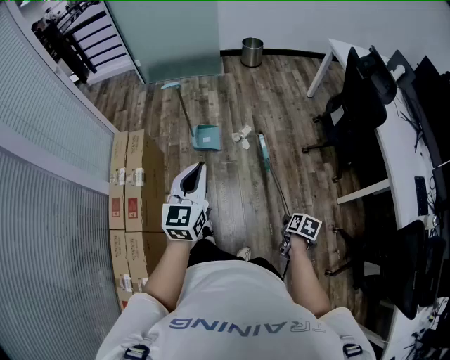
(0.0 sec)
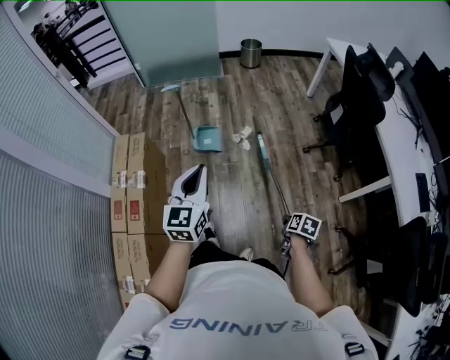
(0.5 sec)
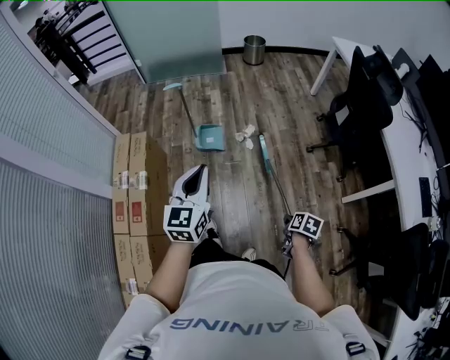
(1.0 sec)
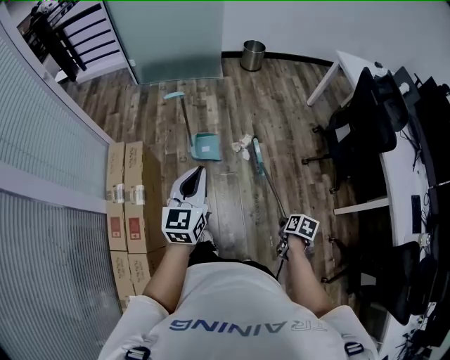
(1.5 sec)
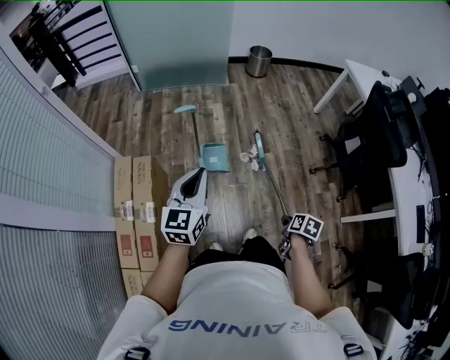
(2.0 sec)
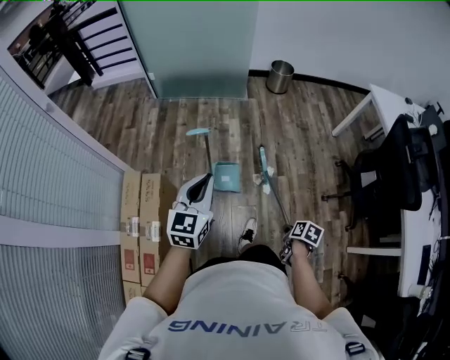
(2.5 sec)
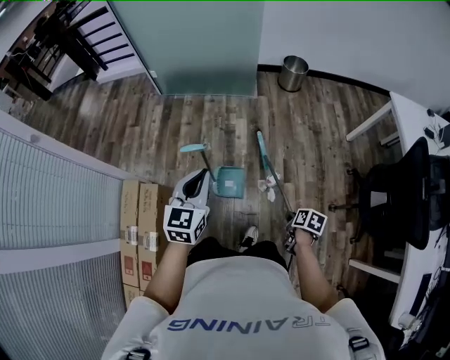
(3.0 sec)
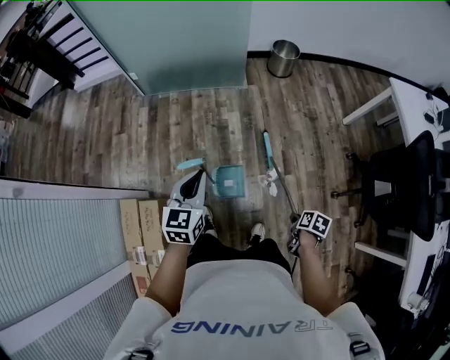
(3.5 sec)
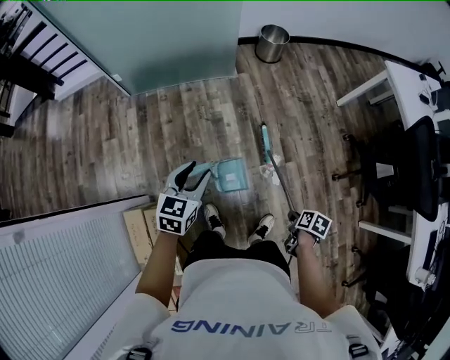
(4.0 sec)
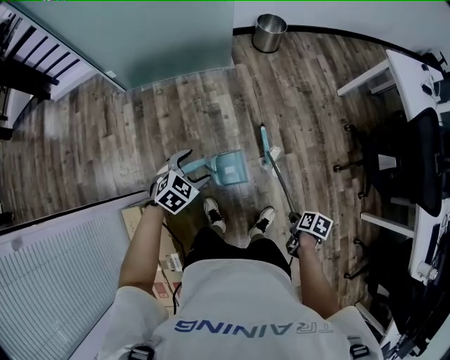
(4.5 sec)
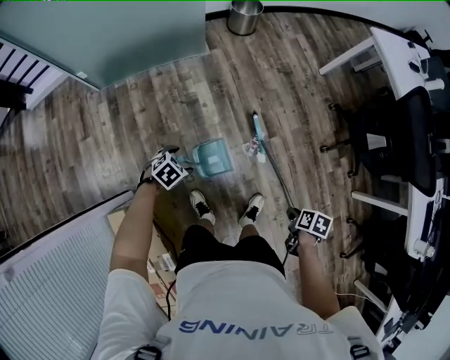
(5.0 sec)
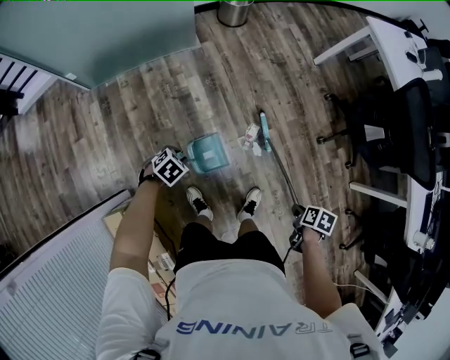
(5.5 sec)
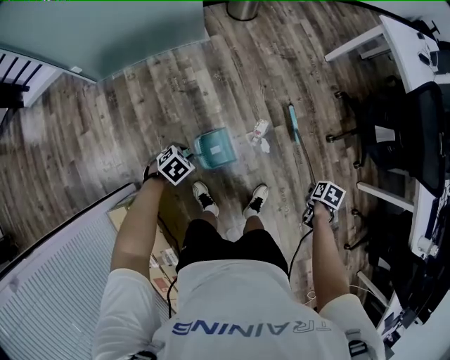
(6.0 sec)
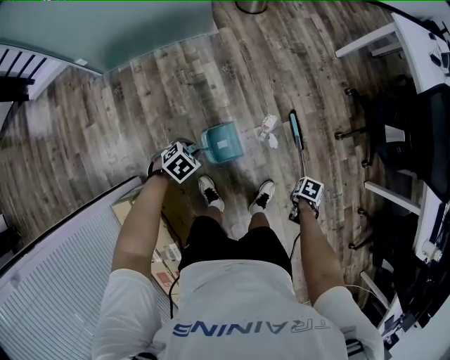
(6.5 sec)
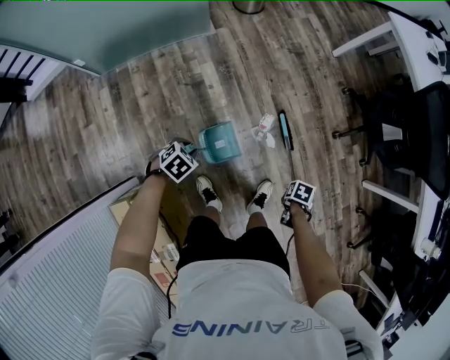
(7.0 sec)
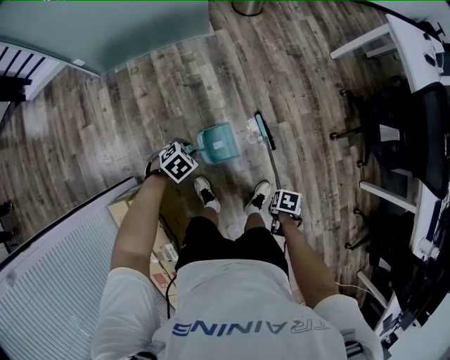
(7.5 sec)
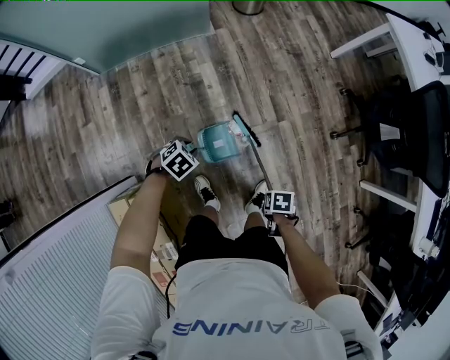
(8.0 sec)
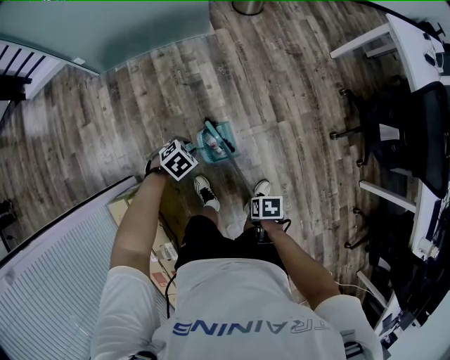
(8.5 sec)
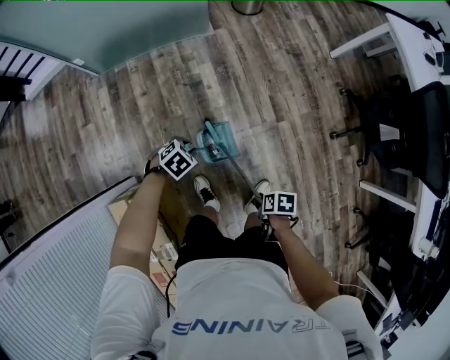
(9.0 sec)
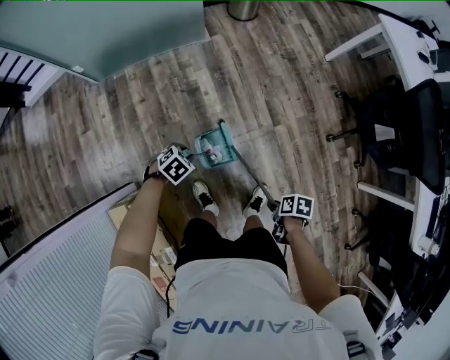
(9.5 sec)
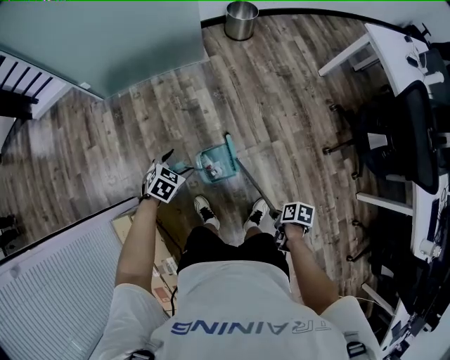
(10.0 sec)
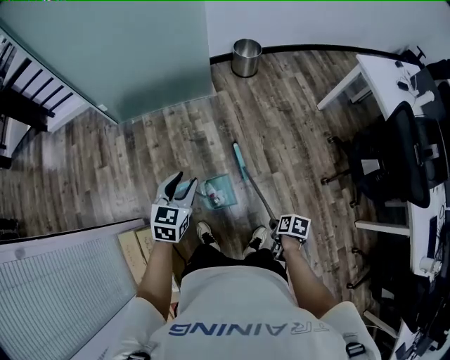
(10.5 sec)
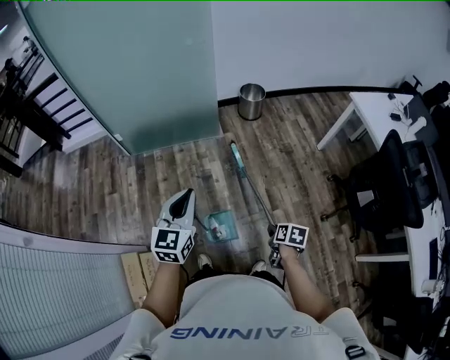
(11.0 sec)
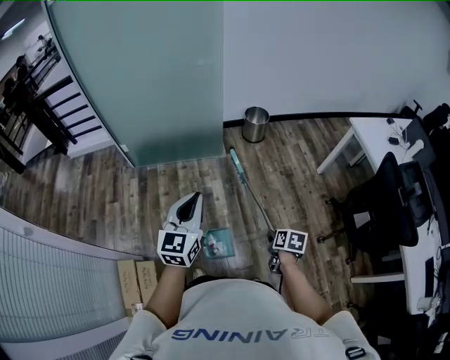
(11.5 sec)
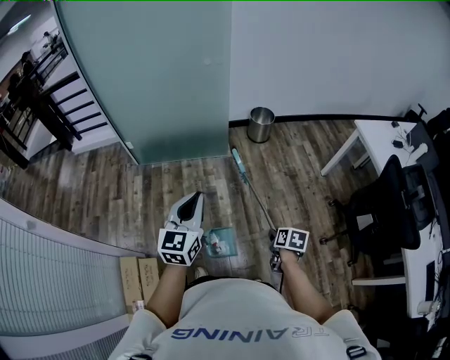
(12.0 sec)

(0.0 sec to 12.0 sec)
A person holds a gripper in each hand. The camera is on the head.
0.0 sec - 2.0 sec: The left gripper ends up approximately 25 cm from where it was.
2.0 sec - 4.0 sec: The left gripper moves about 40 cm, turns by about 30 degrees, and opens up.
4.0 sec - 6.0 sec: The left gripper moves downward, roughly 25 cm, points its fingers about 40 degrees further downward, and opens, then closes once more.
8.0 sec - 10.0 sec: The left gripper goes about 5 cm upward, and opens.
10.0 sec - 12.0 sec: The left gripper is displaced upward by some 35 cm, tips its fingers upward by some 50 degrees, and closes.

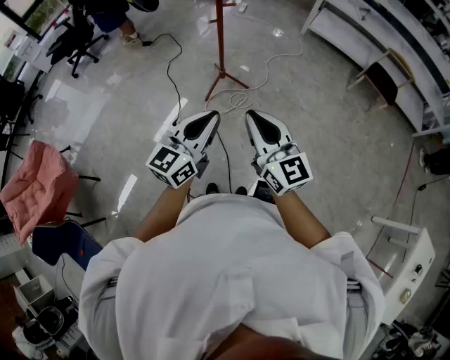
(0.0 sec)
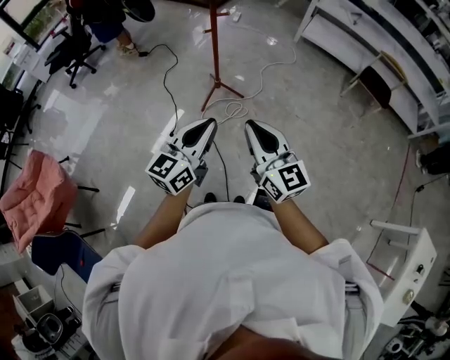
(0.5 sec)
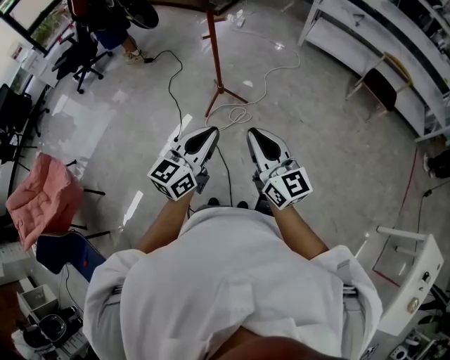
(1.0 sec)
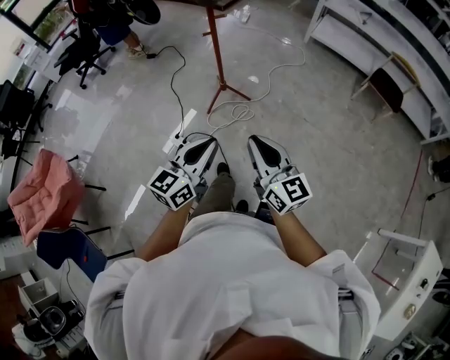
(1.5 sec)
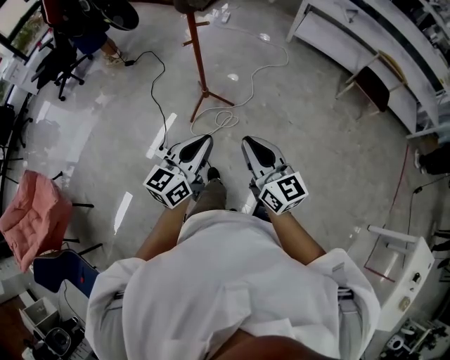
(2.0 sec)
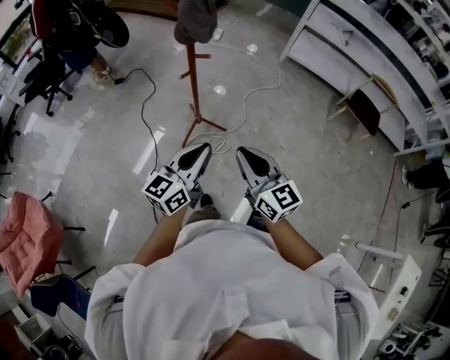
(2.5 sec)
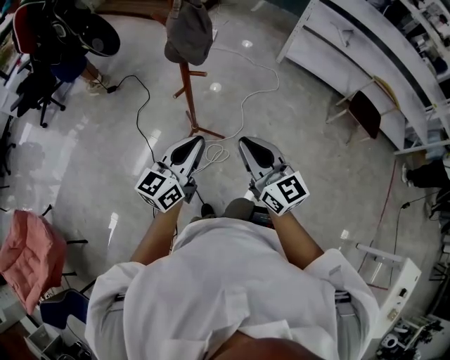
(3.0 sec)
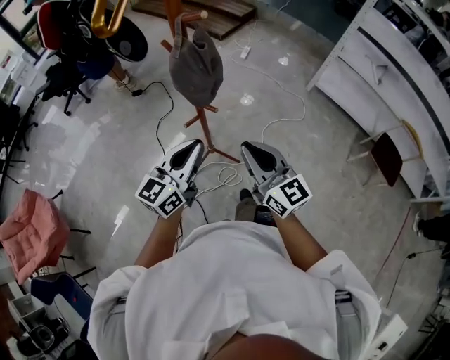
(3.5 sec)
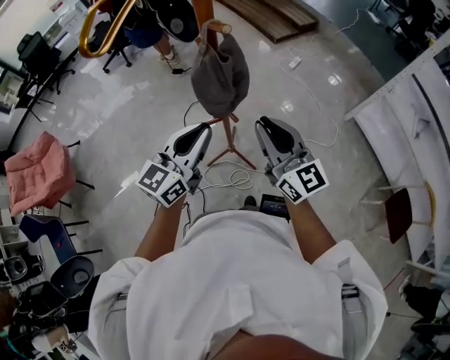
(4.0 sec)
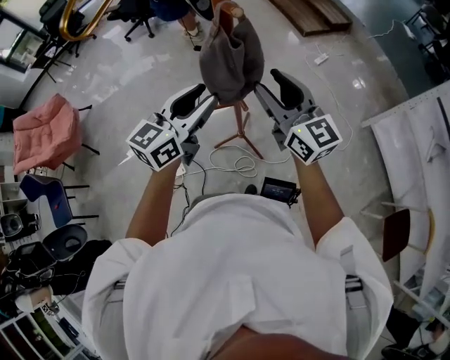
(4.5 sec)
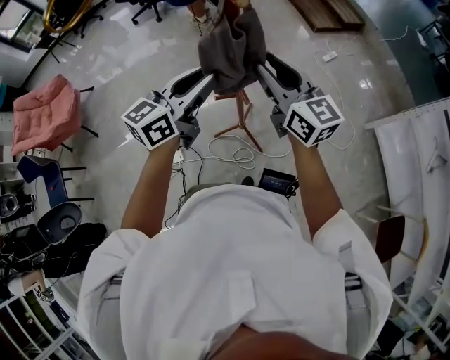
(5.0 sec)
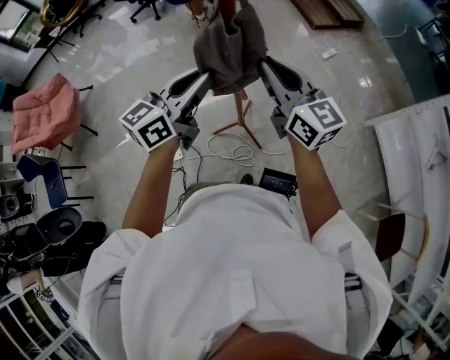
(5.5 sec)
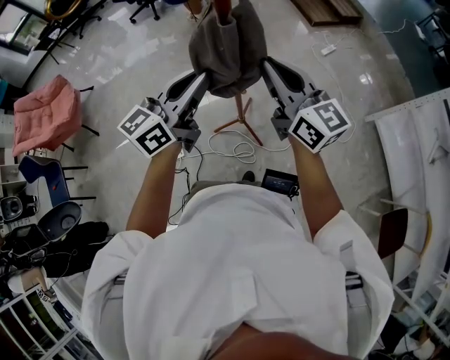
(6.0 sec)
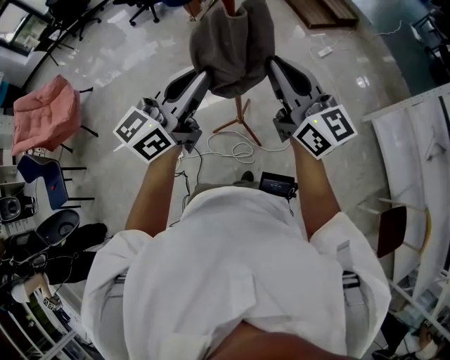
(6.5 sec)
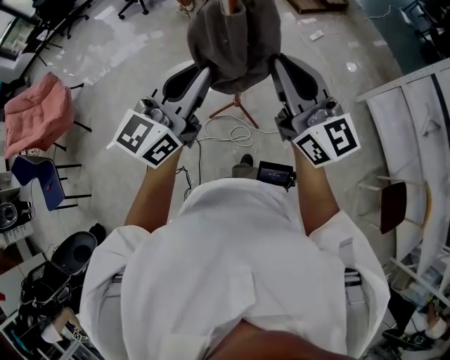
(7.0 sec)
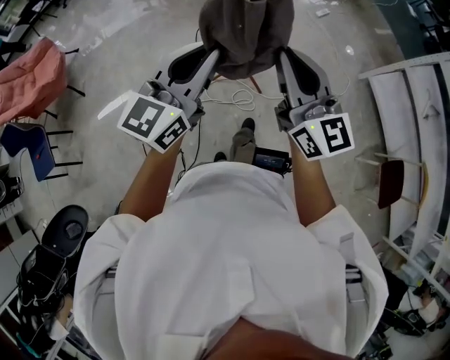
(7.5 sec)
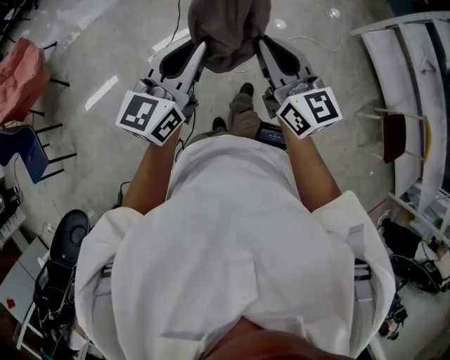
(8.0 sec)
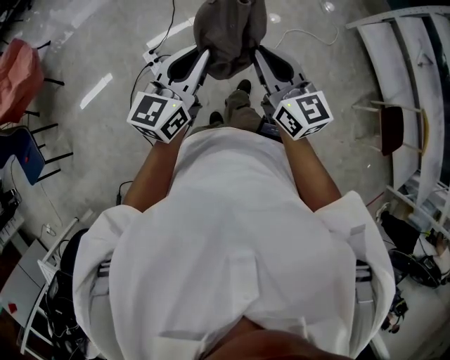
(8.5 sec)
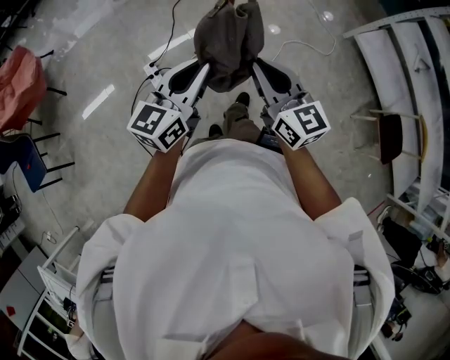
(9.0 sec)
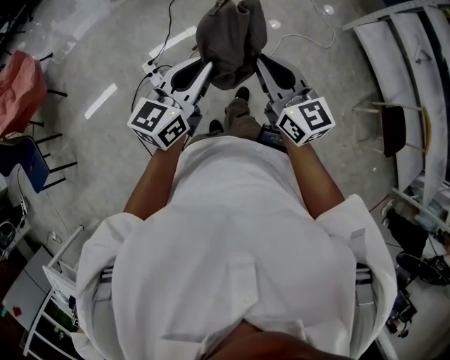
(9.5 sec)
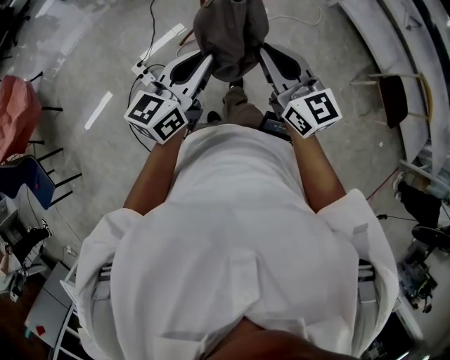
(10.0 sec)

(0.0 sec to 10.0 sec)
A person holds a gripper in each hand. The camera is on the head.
0.0 sec - 2.0 sec: The left gripper shifts approximately 10 cm forward and downward. Meanwhile the right gripper moves forward, to the right and downward, some 10 cm.
2.0 sec - 4.0 sec: Both grippers are carried approximately 50 cm. The right gripper swivels roughly 30 degrees. Meanwhile the left gripper rotates about 30 degrees.
4.0 sec - 6.0 sec: The left gripper opens and closes again. Meanwhile the right gripper moves forward, approximately 5 cm, and opens, then closes again.
6.0 sec - 8.0 sec: Both grippers move backward, some 30 cm.
8.0 sec - 10.0 sec: The right gripper shifts some 15 cm to the right and backward, while the left gripper shifts roughly 15 cm to the right and downward.

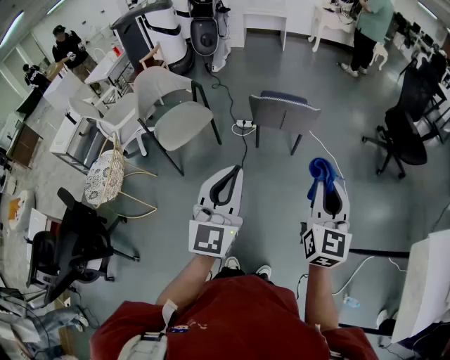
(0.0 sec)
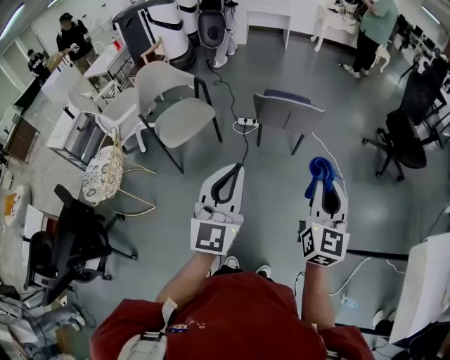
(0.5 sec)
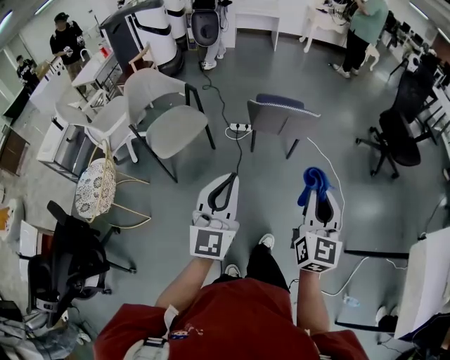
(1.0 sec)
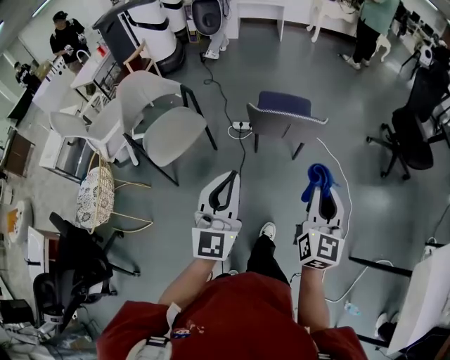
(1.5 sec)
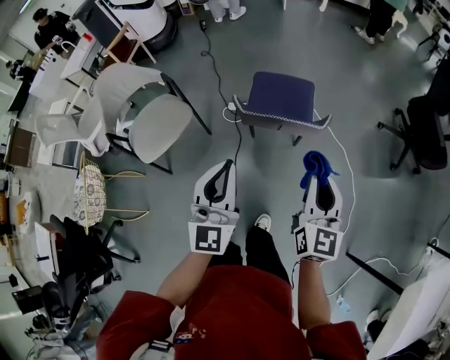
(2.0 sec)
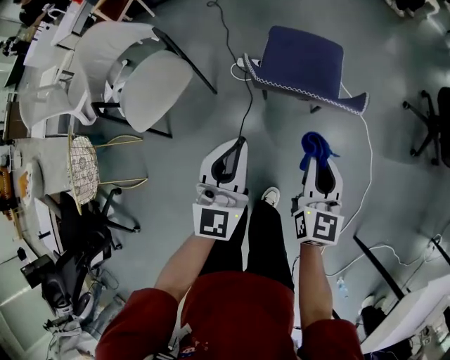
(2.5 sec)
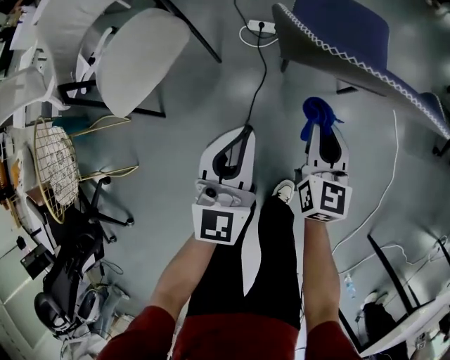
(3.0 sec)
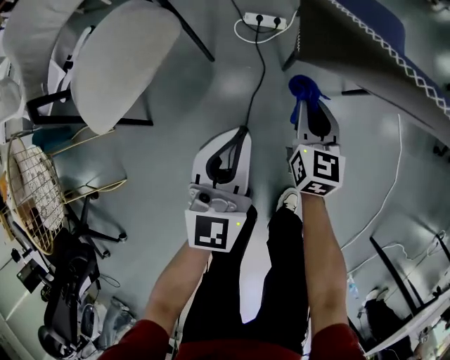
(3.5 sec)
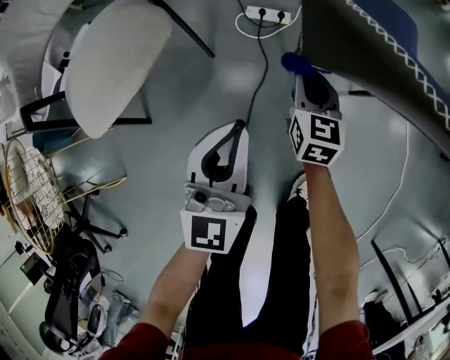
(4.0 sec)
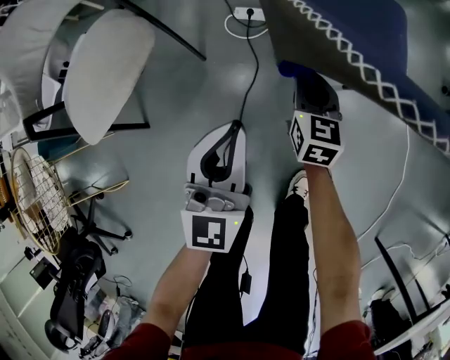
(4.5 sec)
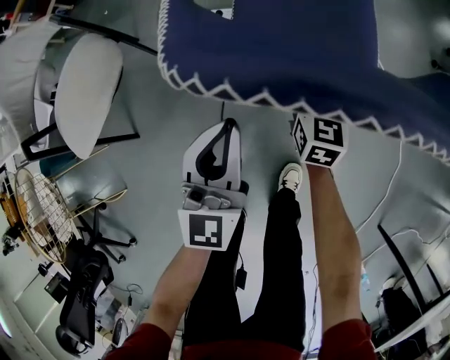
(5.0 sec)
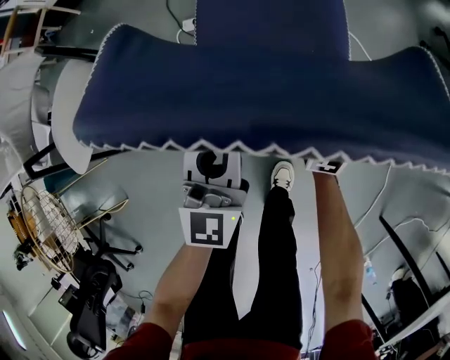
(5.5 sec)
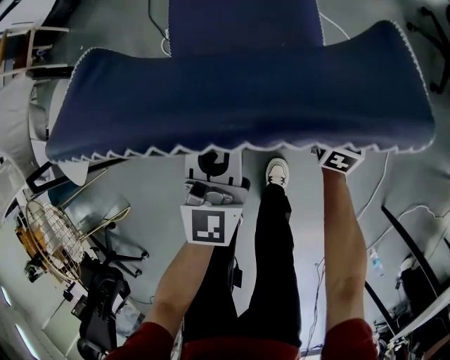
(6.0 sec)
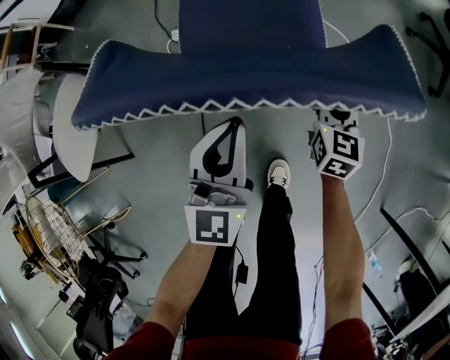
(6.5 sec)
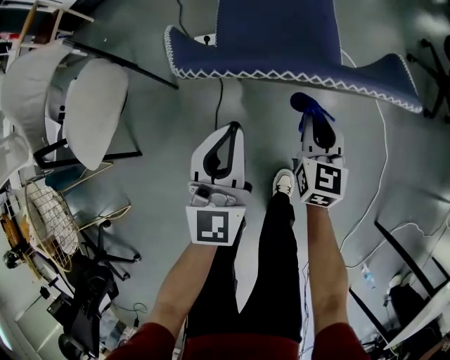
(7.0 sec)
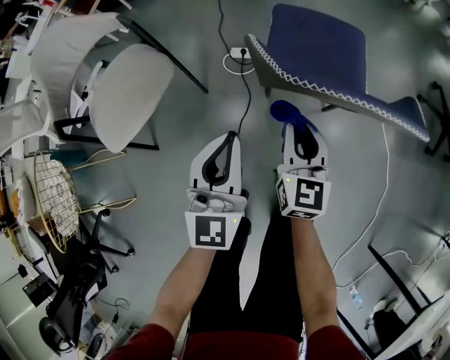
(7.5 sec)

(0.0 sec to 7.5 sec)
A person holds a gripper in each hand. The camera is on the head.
0.0 sec - 2.0 sec: Both grippers travel together forward, about 35 cm.
2.0 sec - 4.0 sec: The left gripper travels downward by approximately 40 cm. Meanwhile the right gripper shifts some 70 cm downward, forward and to the left, and changes its angle by approximately 30 degrees.
4.0 sec - 5.5 sec: Both grippers travel together to the right, some 20 cm.
5.5 sec - 7.5 sec: The right gripper shifts roughly 25 cm upward, to the left and backward. The left gripper shifts about 20 cm to the left, upward and backward.
